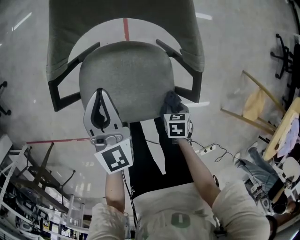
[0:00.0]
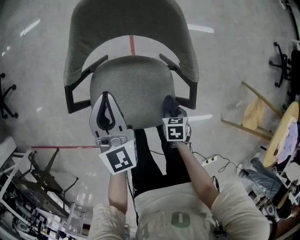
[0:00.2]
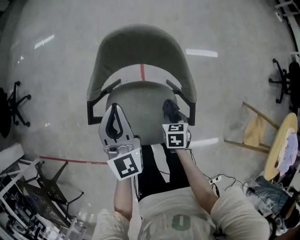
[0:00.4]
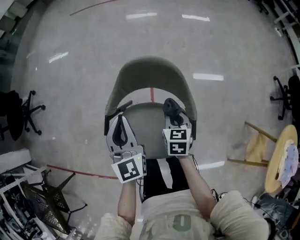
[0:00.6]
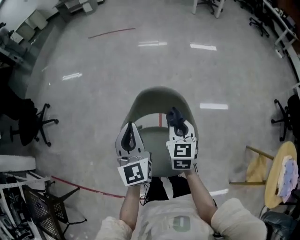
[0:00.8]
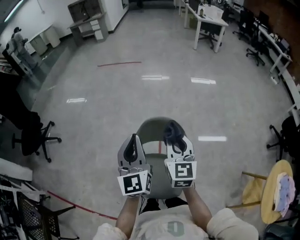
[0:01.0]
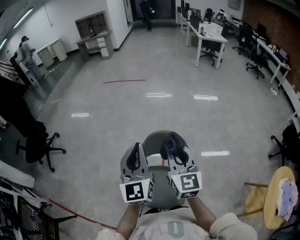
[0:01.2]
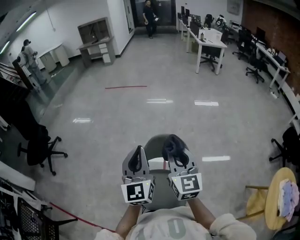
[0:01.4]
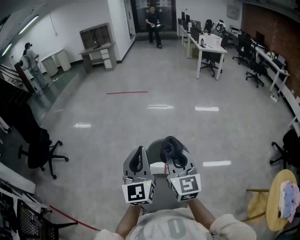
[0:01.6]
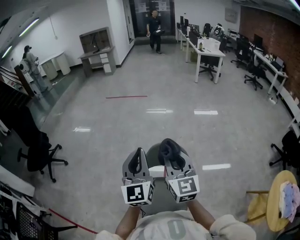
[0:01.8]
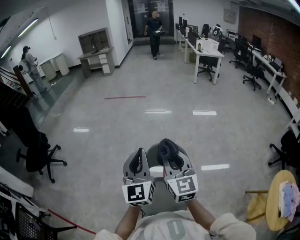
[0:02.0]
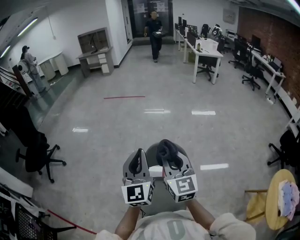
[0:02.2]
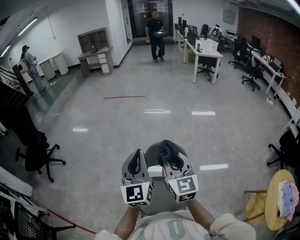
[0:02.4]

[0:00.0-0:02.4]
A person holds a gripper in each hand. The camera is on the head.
0.0 to 1.2 s: The two grippers go approximately 50 cm upward. The left gripper rotates about 30 degrees. Meanwhile the right gripper tips its fingers upward by roughly 80 degrees.
1.2 to 2.4 s: The grippers stay close to where they were, moving slightly.

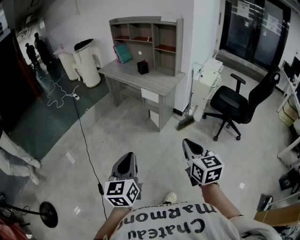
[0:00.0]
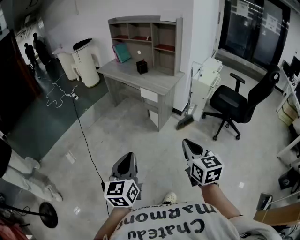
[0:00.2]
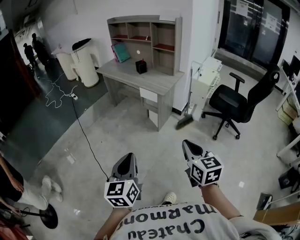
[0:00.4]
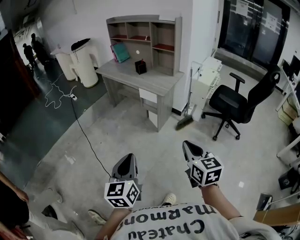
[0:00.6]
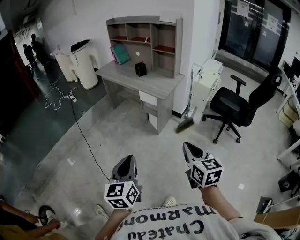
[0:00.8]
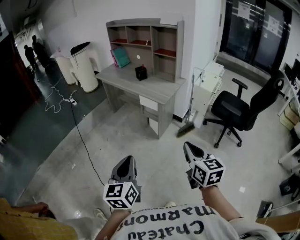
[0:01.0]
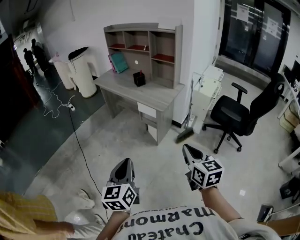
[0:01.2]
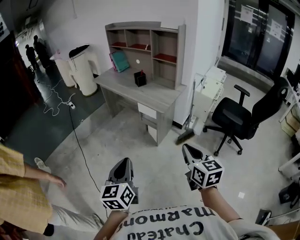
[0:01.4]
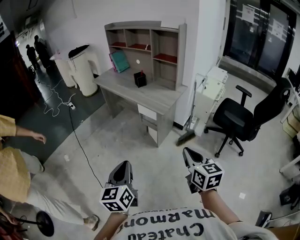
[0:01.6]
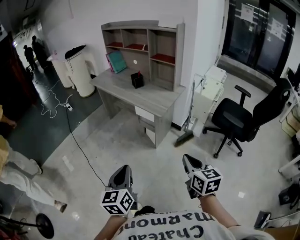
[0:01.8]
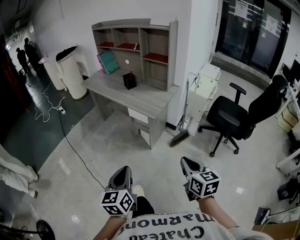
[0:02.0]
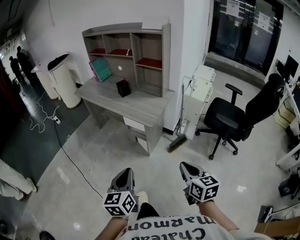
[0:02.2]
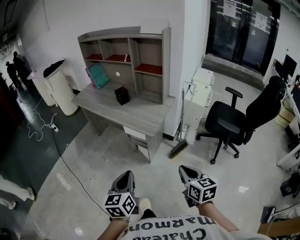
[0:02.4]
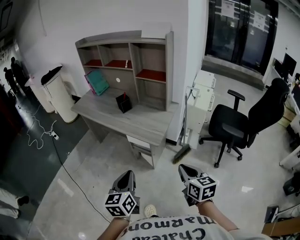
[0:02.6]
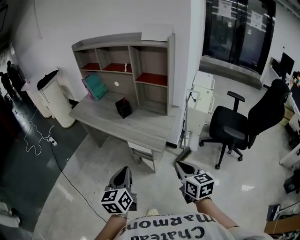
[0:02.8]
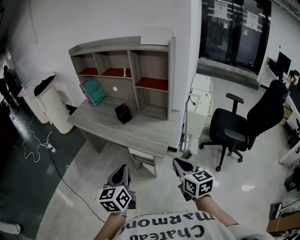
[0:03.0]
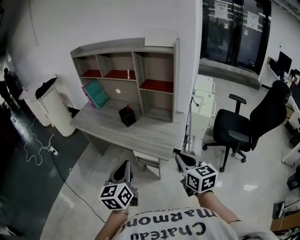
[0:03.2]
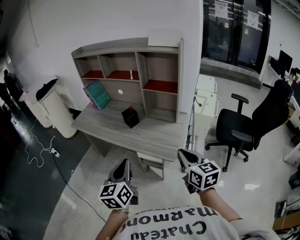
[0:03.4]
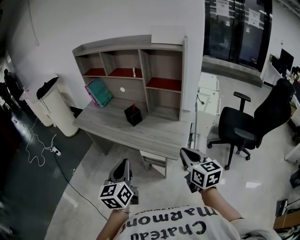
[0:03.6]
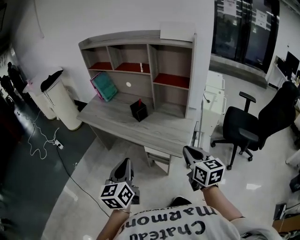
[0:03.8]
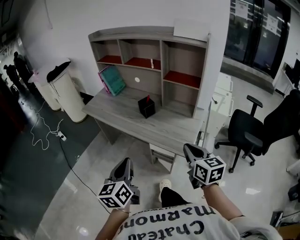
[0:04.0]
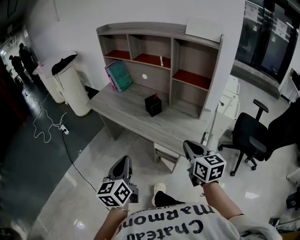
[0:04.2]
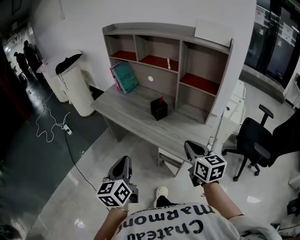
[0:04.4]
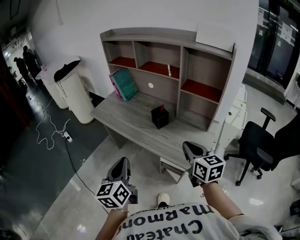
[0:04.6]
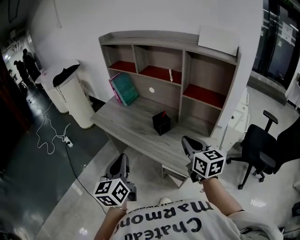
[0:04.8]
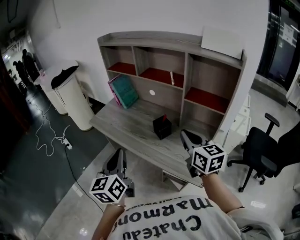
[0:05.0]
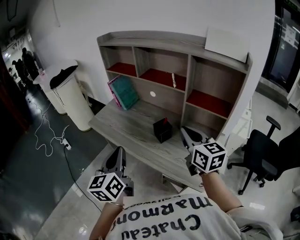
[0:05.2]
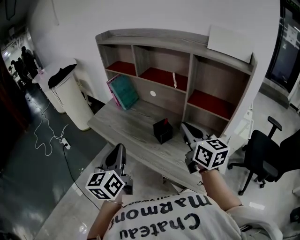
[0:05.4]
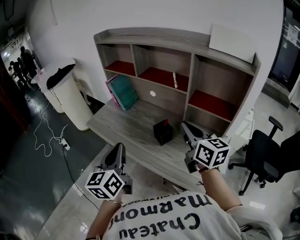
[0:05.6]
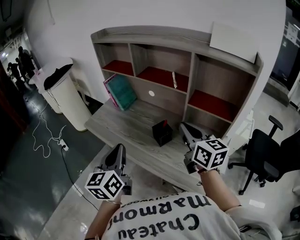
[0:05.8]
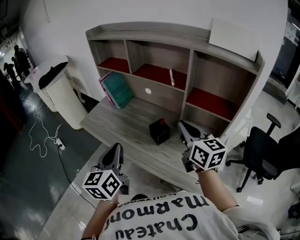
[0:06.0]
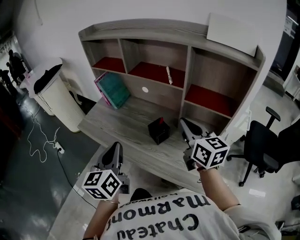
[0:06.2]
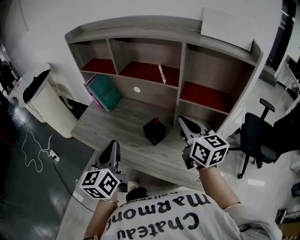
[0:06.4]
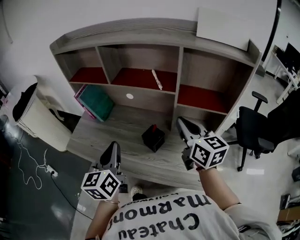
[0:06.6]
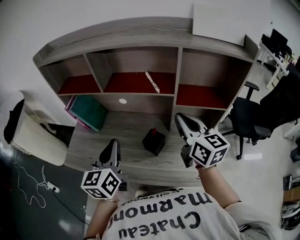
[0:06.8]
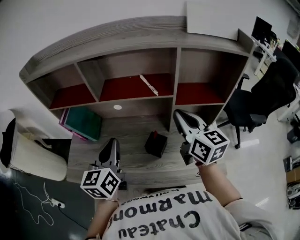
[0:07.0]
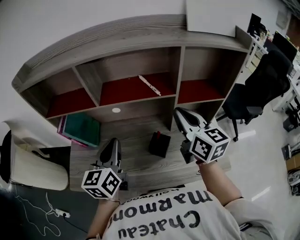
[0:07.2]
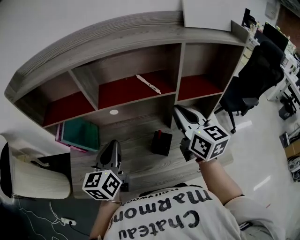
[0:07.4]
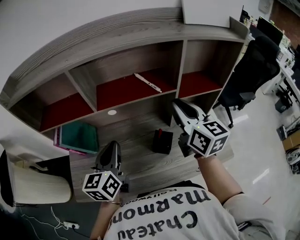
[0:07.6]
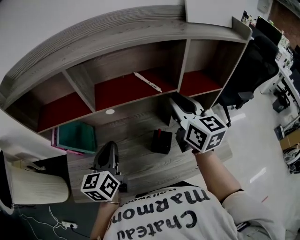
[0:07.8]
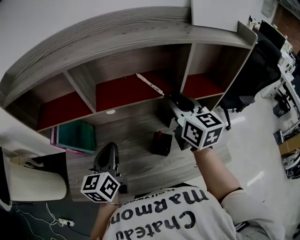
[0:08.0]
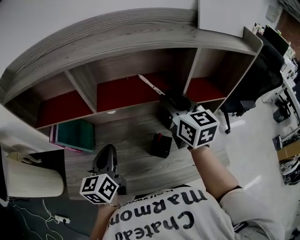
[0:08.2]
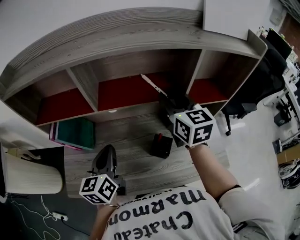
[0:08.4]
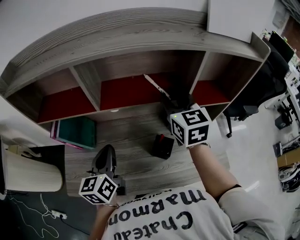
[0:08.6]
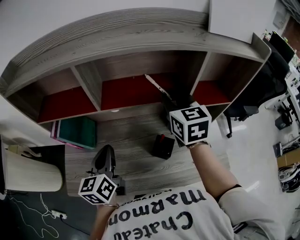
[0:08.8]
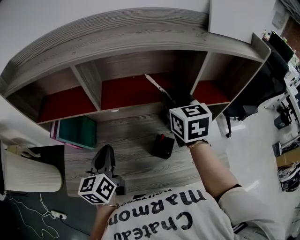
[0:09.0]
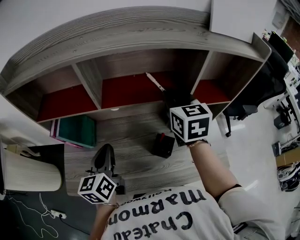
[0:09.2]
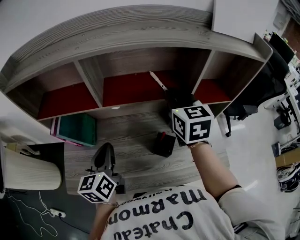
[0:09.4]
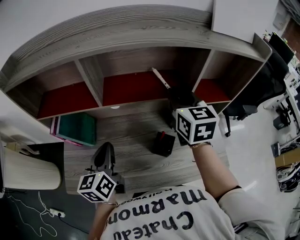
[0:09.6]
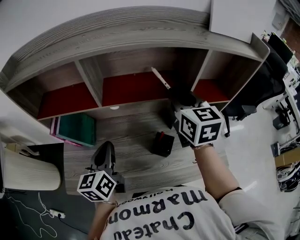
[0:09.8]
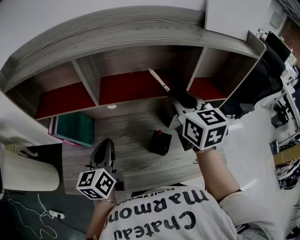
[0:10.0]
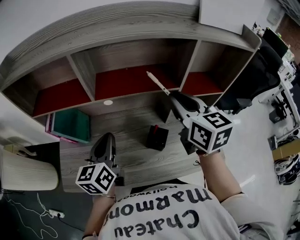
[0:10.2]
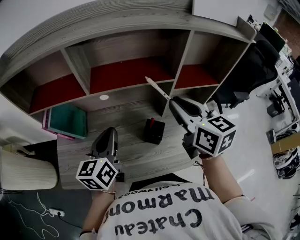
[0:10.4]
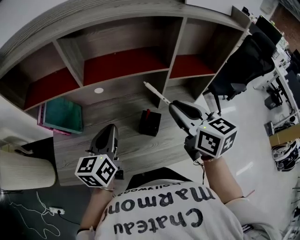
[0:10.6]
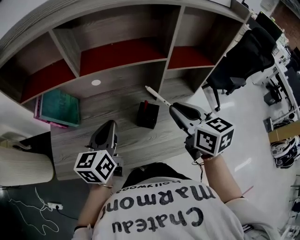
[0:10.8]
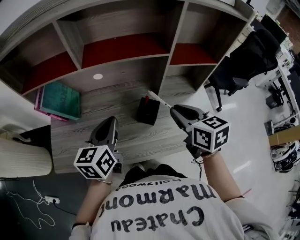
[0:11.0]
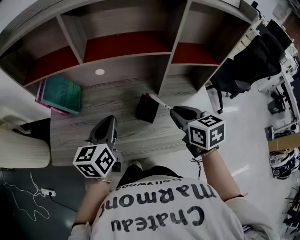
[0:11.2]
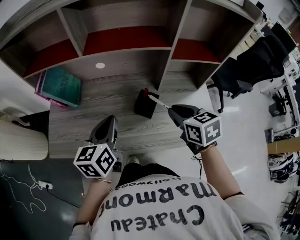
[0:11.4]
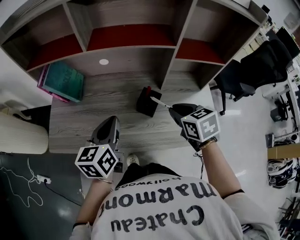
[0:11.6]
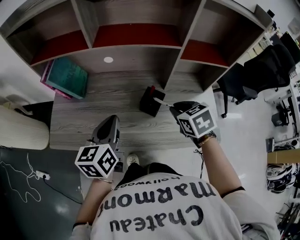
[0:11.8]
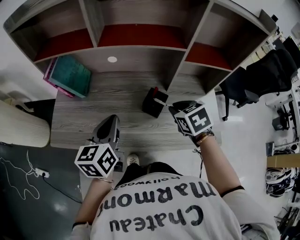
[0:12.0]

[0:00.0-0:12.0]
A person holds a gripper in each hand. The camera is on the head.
0.0 to 1.6 s: The grippers both shift forward by about 15 cm.
1.6 to 3.0 s: The grippers both shift forward by approximately 30 cm.
3.0 to 4.4 s: The right gripper shifts some 20 cm forward and to the left. The left gripper shifts about 15 cm to the left and forward.
4.4 to 6.0 s: Both grippers travel together forward, some 25 cm.
6.0 to 7.6 s: The left gripper ends up approximately 25 cm from where it was, and turns by approximately 40 degrees; the right gripper changes place by roughly 10 cm, and swivels approximately 40 degrees.
7.6 to 9.0 s: The right gripper is displaced forward by roughly 10 cm, and rotates roughly 20 degrees.
9.0 to 10.4 s: The right gripper travels backward by approximately 10 cm. Meanwhile the left gripper heads to the right, covering roughly 5 cm.
10.4 to 12.0 s: The left gripper travels backward and downward by roughly 10 cm; the right gripper is displaced downward by roughly 20 cm, and tilts its fingers about 40 degrees downward.

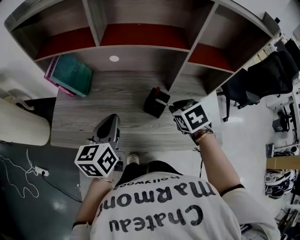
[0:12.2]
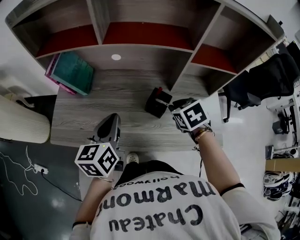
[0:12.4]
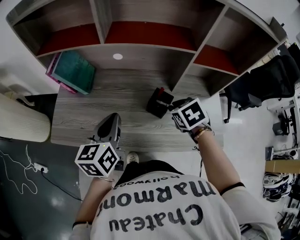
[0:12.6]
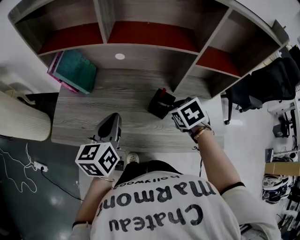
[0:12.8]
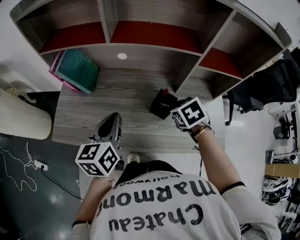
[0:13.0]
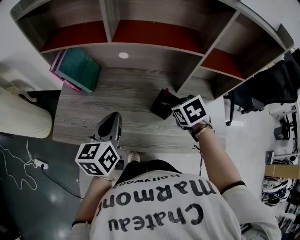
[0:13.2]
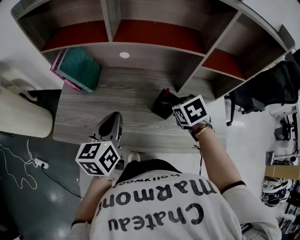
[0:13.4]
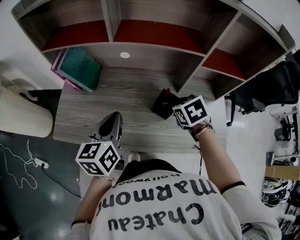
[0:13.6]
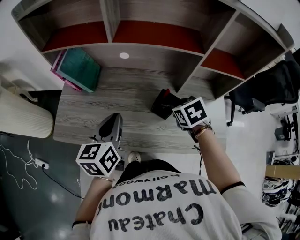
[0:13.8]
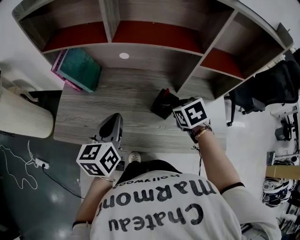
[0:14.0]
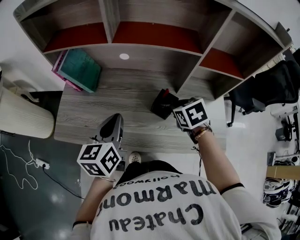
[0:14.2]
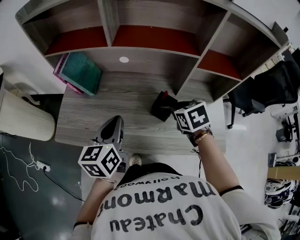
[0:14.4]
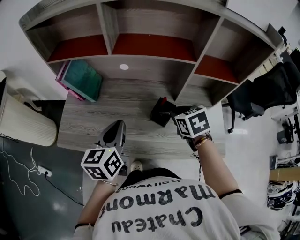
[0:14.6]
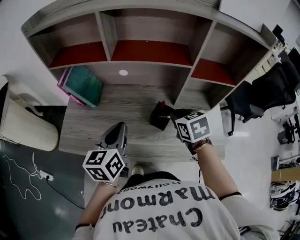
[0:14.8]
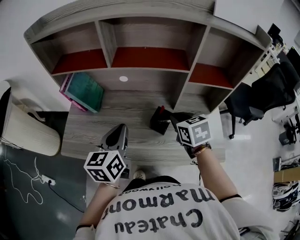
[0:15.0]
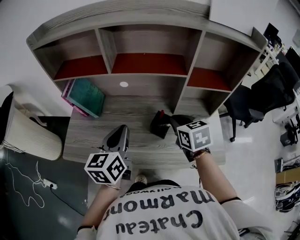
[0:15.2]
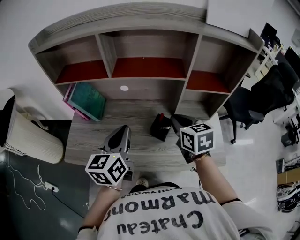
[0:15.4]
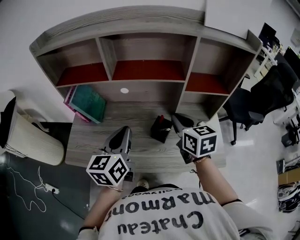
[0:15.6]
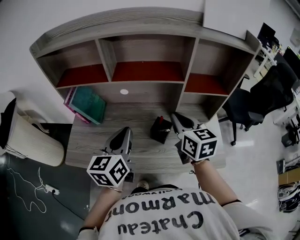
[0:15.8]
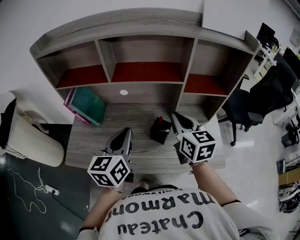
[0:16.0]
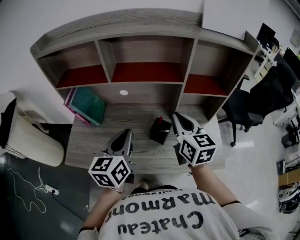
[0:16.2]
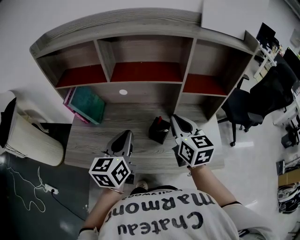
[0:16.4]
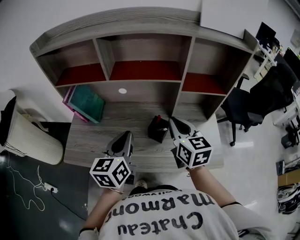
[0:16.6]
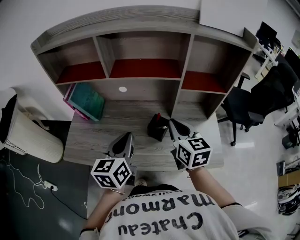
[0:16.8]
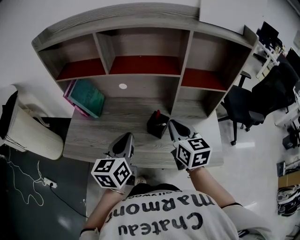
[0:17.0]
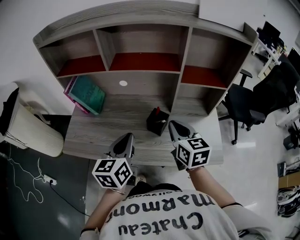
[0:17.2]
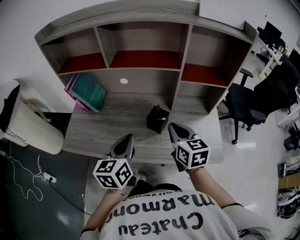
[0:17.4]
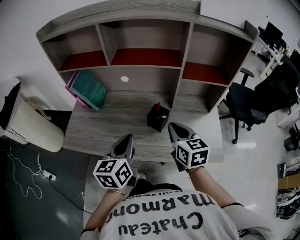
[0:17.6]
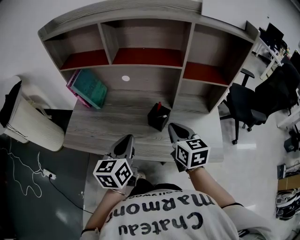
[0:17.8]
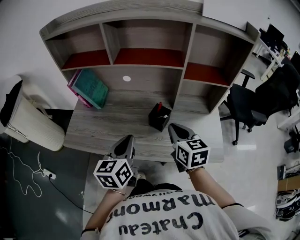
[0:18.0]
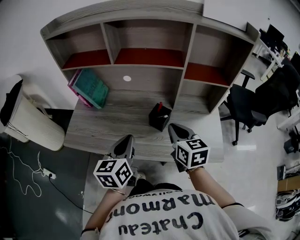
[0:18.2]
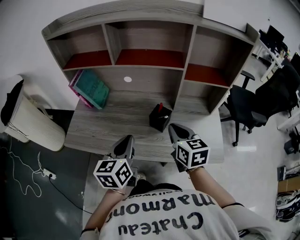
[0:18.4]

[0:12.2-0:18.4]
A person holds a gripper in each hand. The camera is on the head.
12.2 to 13.8 s: There are only small adjustments of the grippers.
13.8 to 15.4 s: The left gripper goes some 5 cm upward. The right gripper is displaced upward by approximately 10 cm, and tips its fingers upward by some 30 degrees.
15.4 to 16.8 s: The grippers move only a little.
16.8 to 18.4 s: The left gripper heads backward, covering about 5 cm. Meanwhile the right gripper shifts about 5 cm downward.

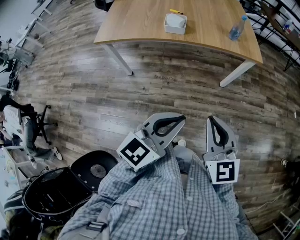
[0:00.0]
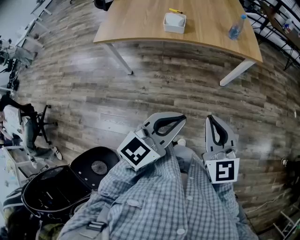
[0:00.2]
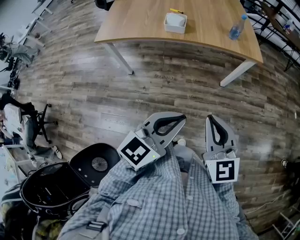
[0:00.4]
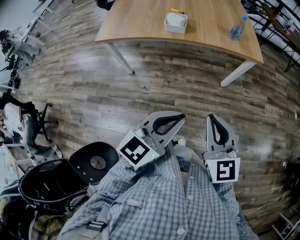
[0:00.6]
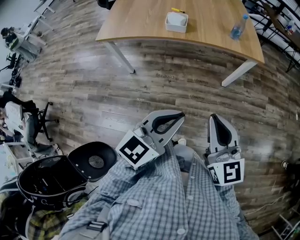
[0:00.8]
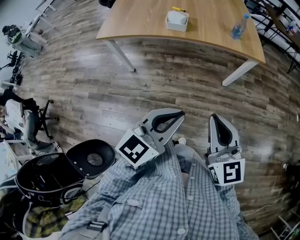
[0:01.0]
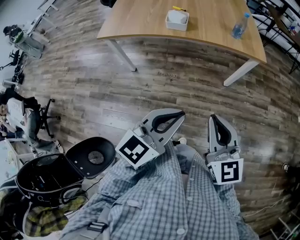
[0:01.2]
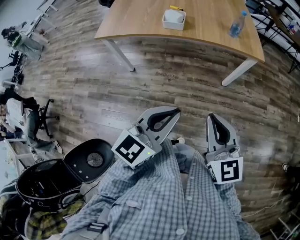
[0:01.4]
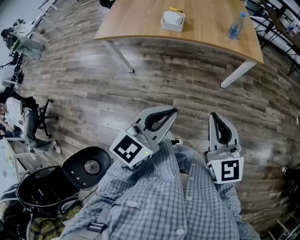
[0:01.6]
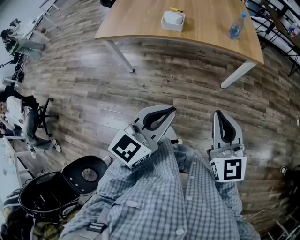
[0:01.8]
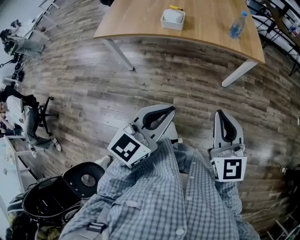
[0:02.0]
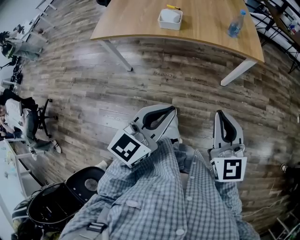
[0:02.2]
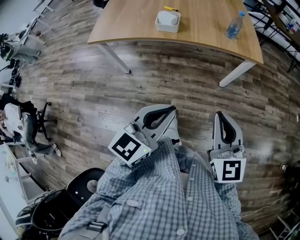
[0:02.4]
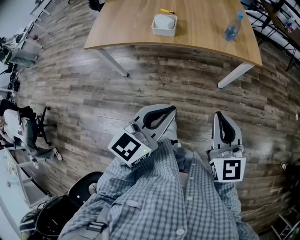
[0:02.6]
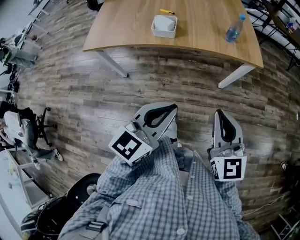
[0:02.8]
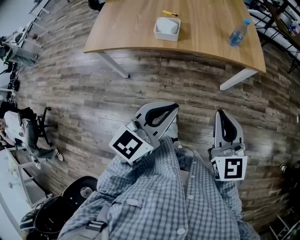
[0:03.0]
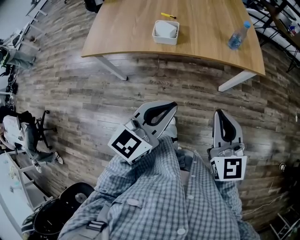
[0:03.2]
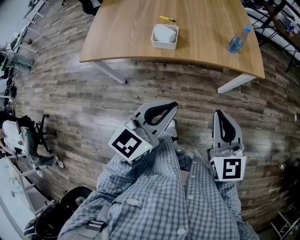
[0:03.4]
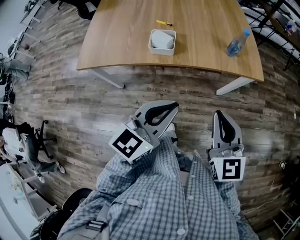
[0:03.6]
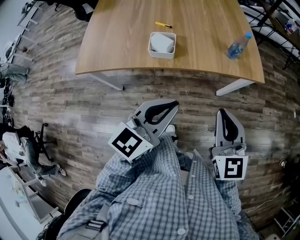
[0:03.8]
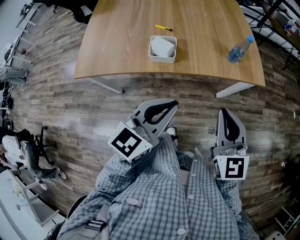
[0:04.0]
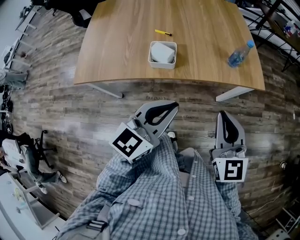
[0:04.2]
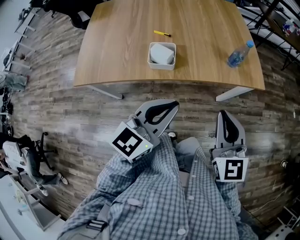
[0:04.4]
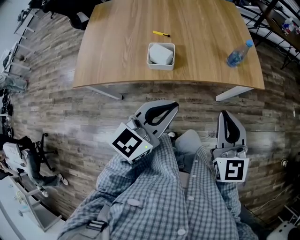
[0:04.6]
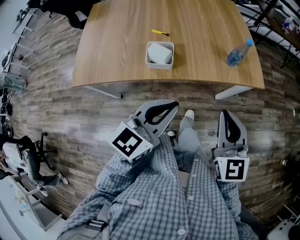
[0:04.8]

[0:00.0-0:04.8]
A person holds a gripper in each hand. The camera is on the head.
0.0 to 1.6 s: The right gripper goes approximately 5 cm to the right.
1.6 to 3.2 s: Both grippers move forward, approximately 15 cm.
3.2 to 4.8 s: The grippers both shift forward by approximately 10 cm.
